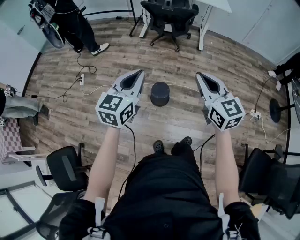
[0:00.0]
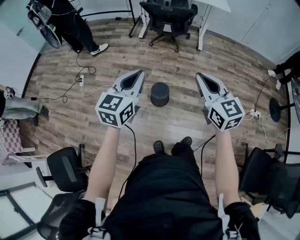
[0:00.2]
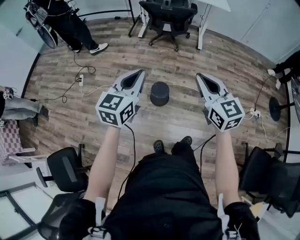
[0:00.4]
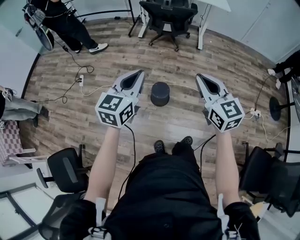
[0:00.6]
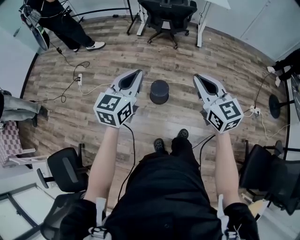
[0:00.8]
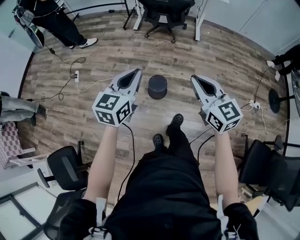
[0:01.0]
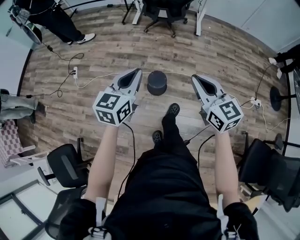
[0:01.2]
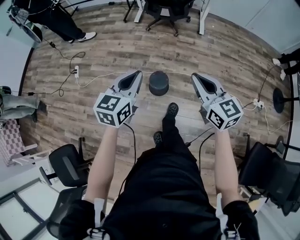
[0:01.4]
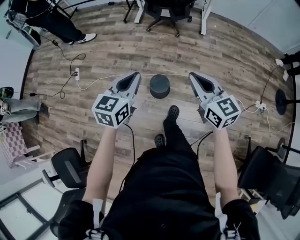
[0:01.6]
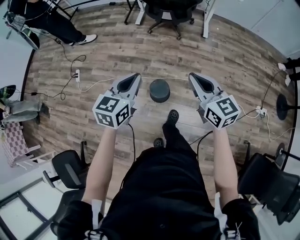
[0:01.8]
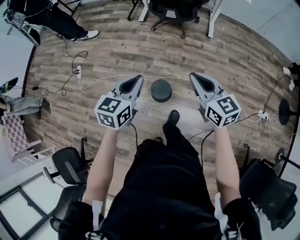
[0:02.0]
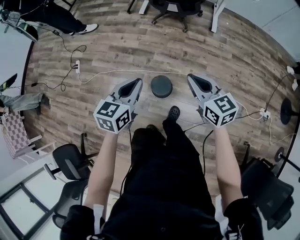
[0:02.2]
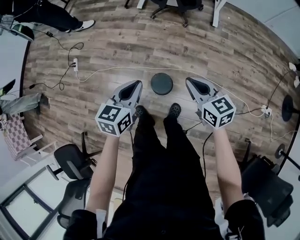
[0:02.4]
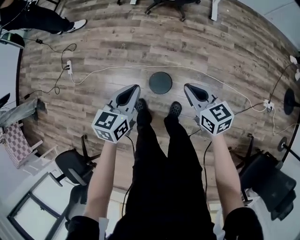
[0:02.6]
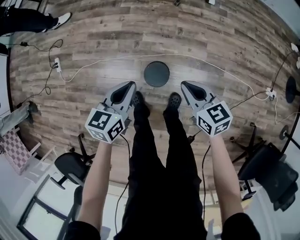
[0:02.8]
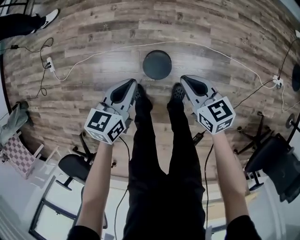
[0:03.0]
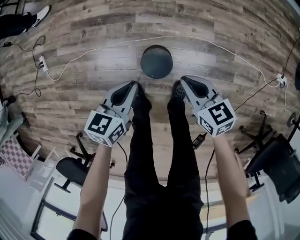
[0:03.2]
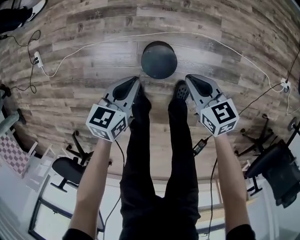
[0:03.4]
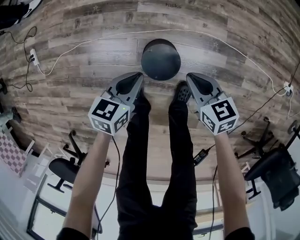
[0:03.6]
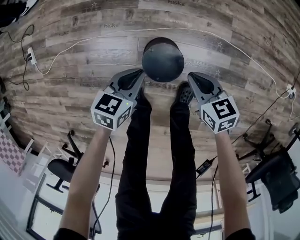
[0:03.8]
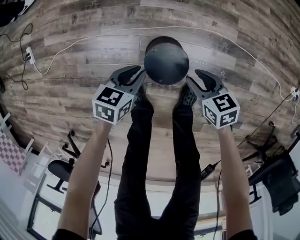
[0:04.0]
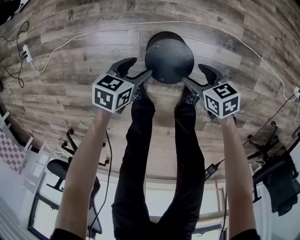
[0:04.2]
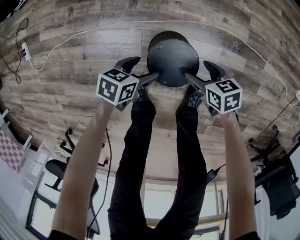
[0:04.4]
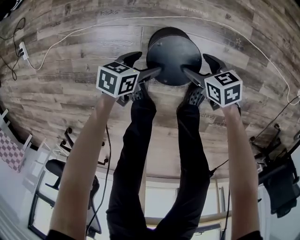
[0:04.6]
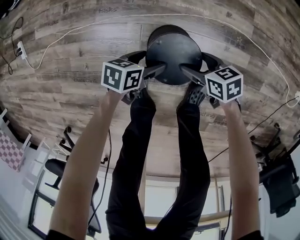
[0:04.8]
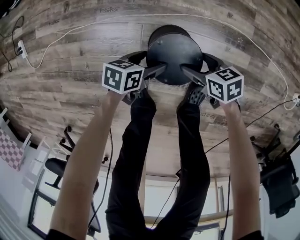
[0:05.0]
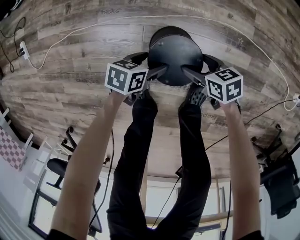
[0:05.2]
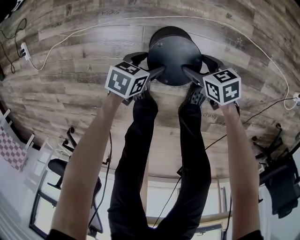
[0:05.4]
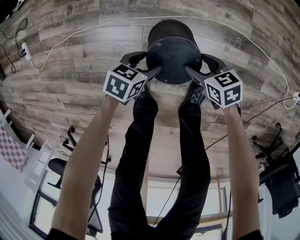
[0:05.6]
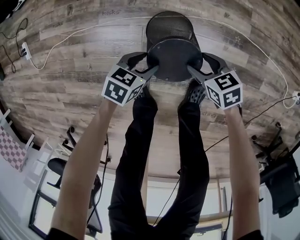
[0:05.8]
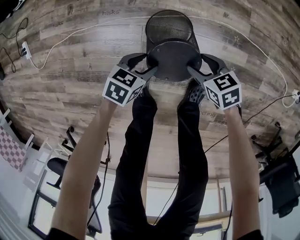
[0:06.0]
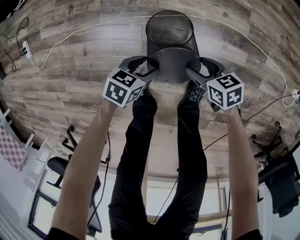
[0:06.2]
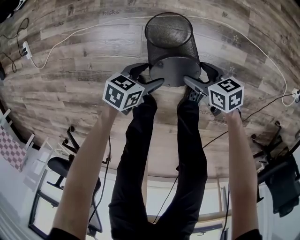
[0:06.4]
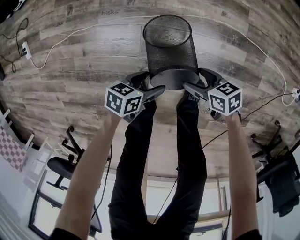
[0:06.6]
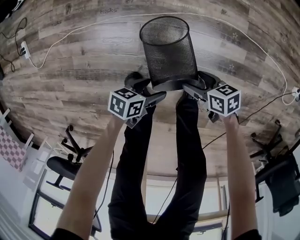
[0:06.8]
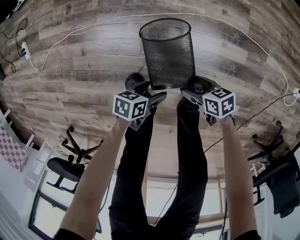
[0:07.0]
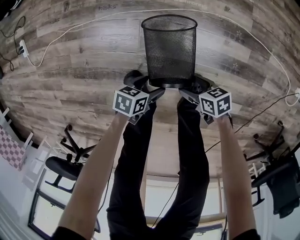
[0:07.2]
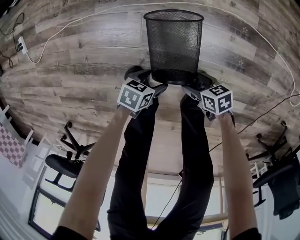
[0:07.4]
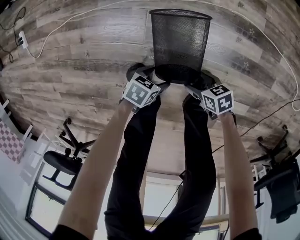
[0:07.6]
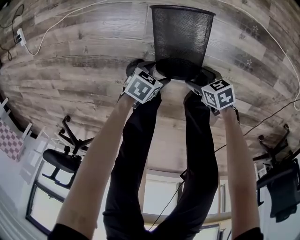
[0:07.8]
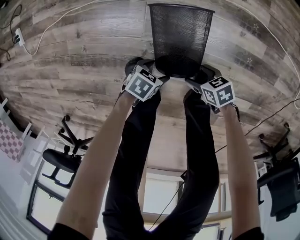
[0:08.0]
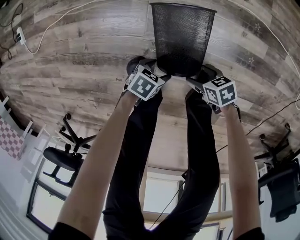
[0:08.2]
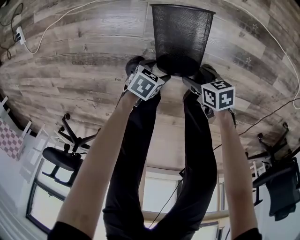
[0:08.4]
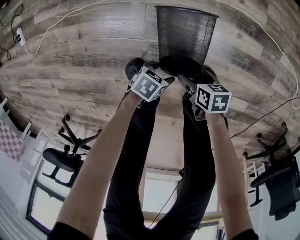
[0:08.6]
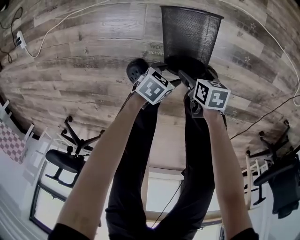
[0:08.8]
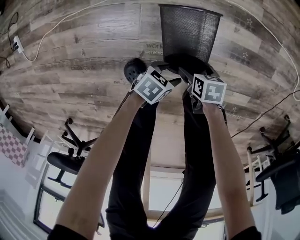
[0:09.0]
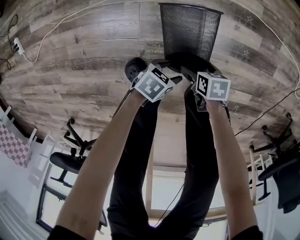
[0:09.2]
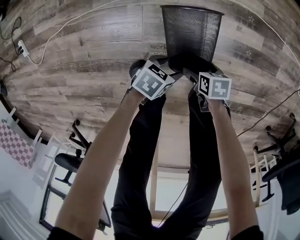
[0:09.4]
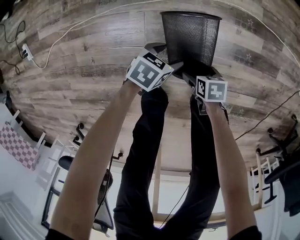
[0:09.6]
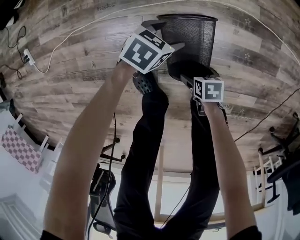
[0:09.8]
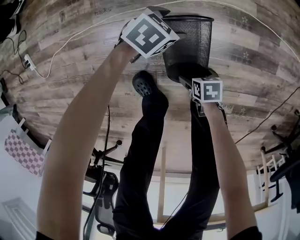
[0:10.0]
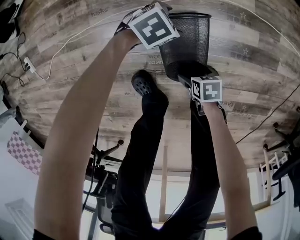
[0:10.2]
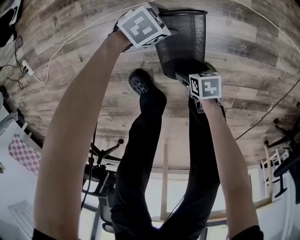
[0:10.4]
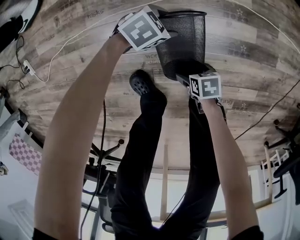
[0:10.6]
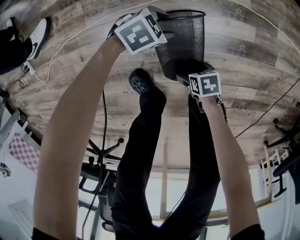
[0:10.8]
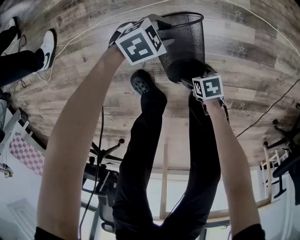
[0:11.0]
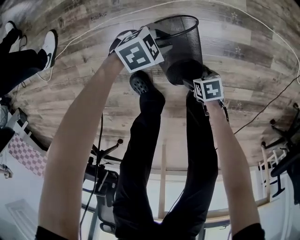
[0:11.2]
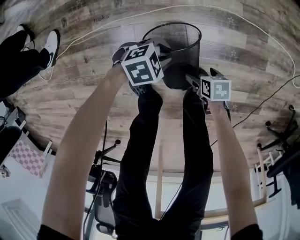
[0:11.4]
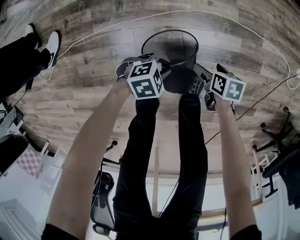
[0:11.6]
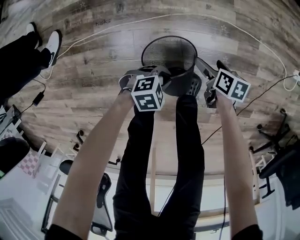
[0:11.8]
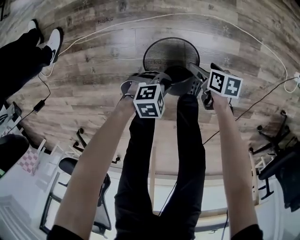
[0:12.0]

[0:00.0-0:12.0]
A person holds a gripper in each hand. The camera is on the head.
0:00.0 to 0:01.6: The grippers both shift forward and downward by about 15 cm.
0:01.6 to 0:03.0: The left gripper shifts approximately 30 cm downward and forward, and changes its angle by some 20 degrees, while the right gripper heads downward, covering about 30 cm, and changes its angle by some 30 degrees.
0:03.0 to 0:04.4: Both grippers travel together downward, some 40 cm. The left gripper changes its angle by about 30 degrees, and opens. Meanwhile the right gripper swivels some 30 degrees, and opens up.
0:04.4 to 0:06.0: The left gripper closes up.
0:06.0 to 0:07.6: The left gripper shifts by approximately 20 cm. Meanwhile the right gripper ends up about 20 cm from where it was, and swivels approximately 20 degrees.
0:07.6 to 0:09.0: The left gripper changes place by some 5 cm; the right gripper swivels roughly 30 degrees.
0:09.0 to 0:10.4: The left gripper moves some 25 cm, and changes its angle by about 40 degrees.
0:10.4 to 0:12.0: The left gripper shifts by roughly 20 cm, and closes; the right gripper shifts by about 15 cm.

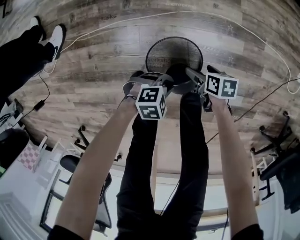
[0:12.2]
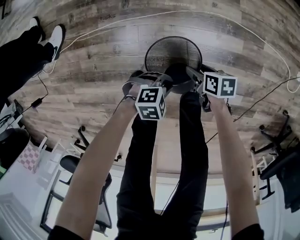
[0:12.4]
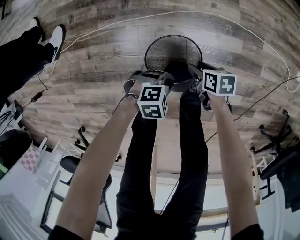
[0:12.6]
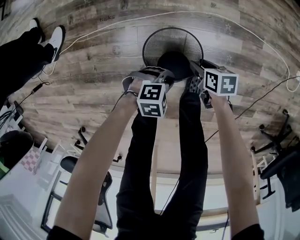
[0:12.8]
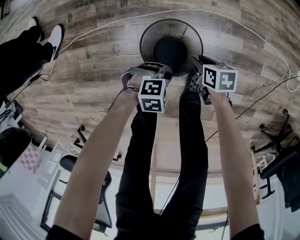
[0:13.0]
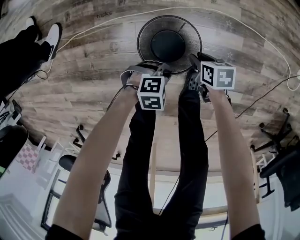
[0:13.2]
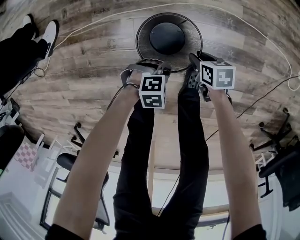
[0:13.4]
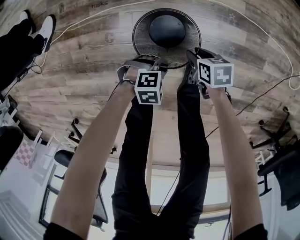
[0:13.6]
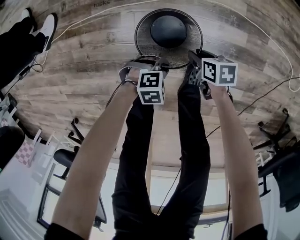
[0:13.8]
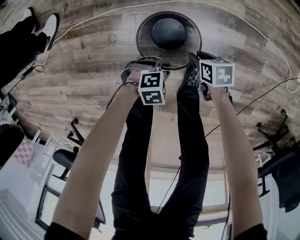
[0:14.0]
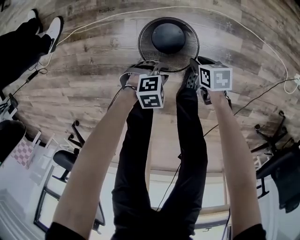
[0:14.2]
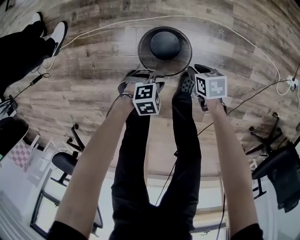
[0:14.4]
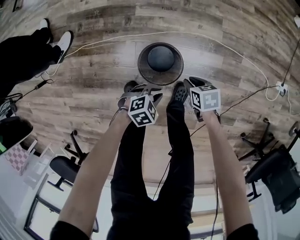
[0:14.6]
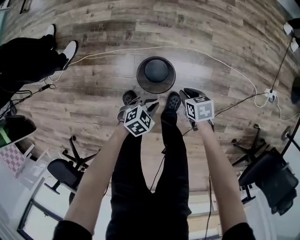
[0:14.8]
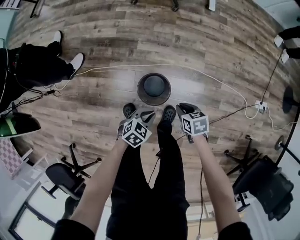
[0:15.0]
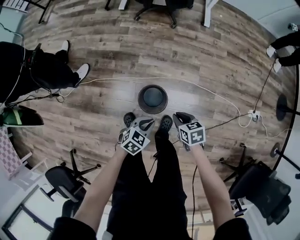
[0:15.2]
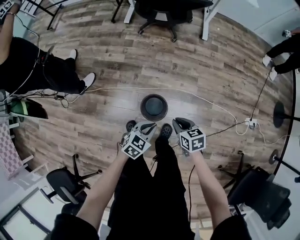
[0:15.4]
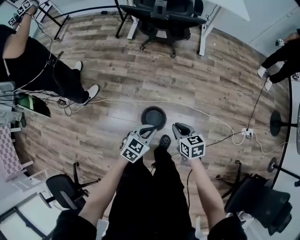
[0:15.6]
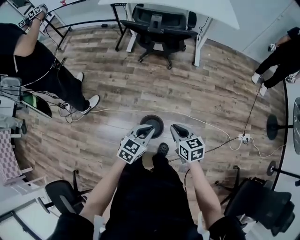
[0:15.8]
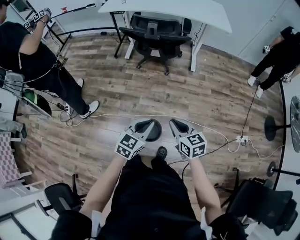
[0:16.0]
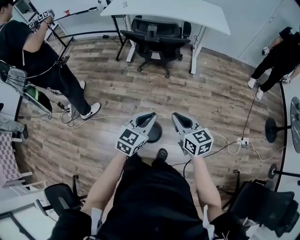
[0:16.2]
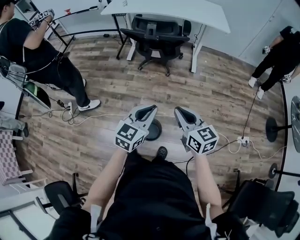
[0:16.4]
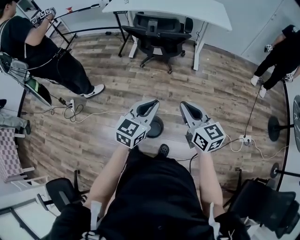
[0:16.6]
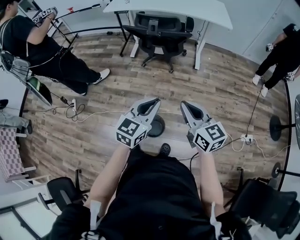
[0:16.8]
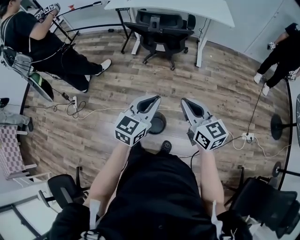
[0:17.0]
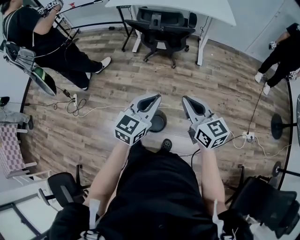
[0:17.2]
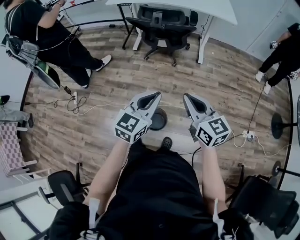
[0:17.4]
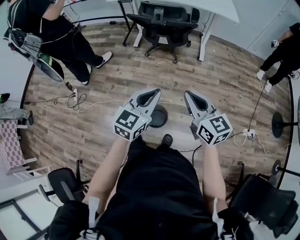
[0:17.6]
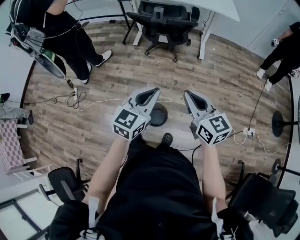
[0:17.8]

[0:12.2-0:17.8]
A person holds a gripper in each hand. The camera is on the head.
0:12.2 to 0:13.6: The left gripper is displaced downward by roughly 5 cm. Meanwhile the right gripper closes up.
0:13.6 to 0:15.0: Both grippers move upward, some 30 cm. The left gripper changes its angle by about 50 degrees.
0:15.0 to 0:16.4: Both grippers travel together upward, roughly 40 cm. The right gripper tilts its fingers roughly 40 degrees upward. The left gripper angles its fingers upward, by about 40 degrees.
0:16.4 to 0:17.8: The grippers move only a little.

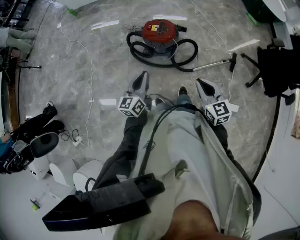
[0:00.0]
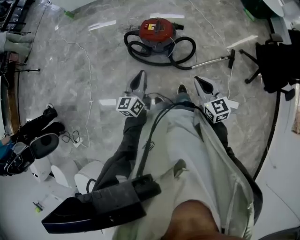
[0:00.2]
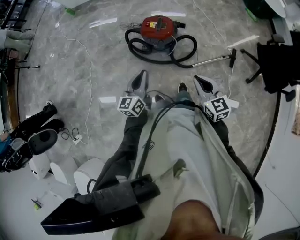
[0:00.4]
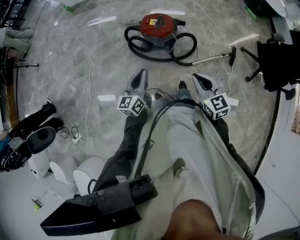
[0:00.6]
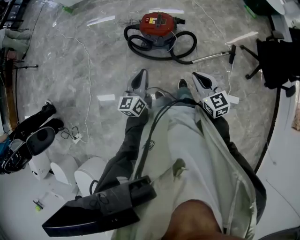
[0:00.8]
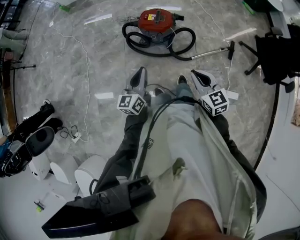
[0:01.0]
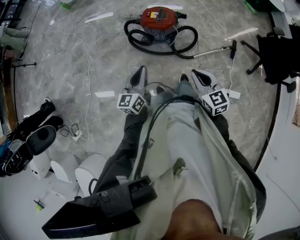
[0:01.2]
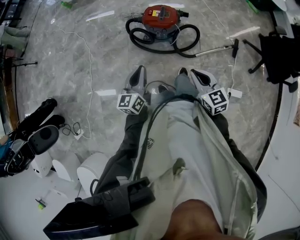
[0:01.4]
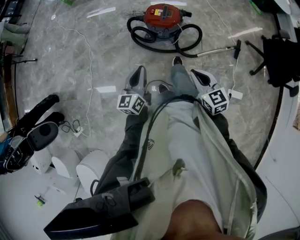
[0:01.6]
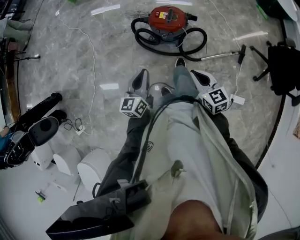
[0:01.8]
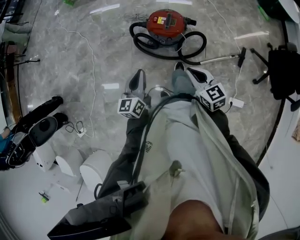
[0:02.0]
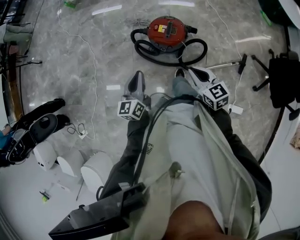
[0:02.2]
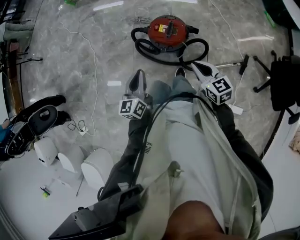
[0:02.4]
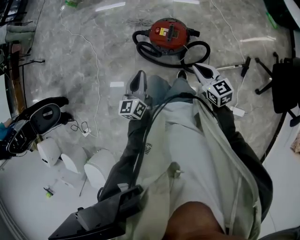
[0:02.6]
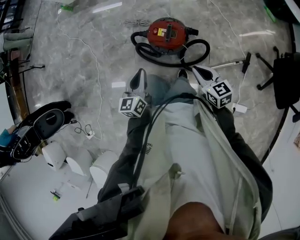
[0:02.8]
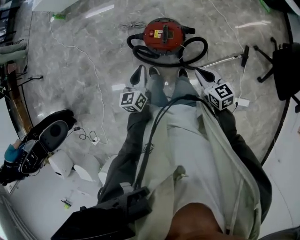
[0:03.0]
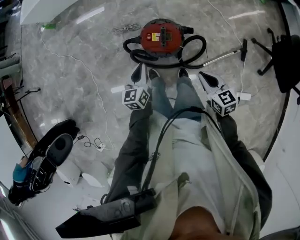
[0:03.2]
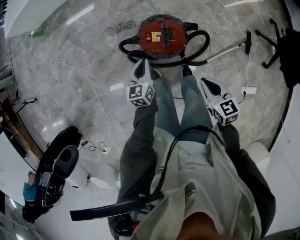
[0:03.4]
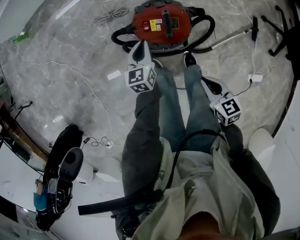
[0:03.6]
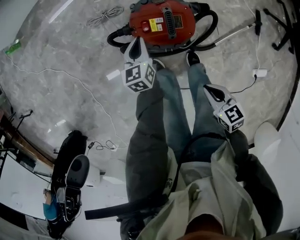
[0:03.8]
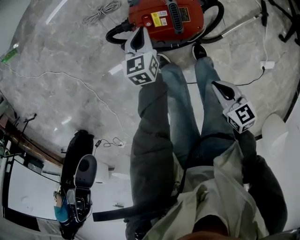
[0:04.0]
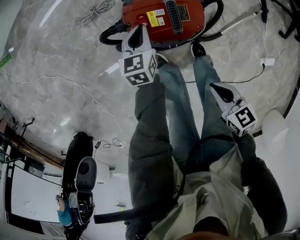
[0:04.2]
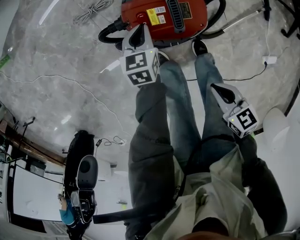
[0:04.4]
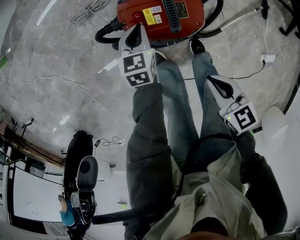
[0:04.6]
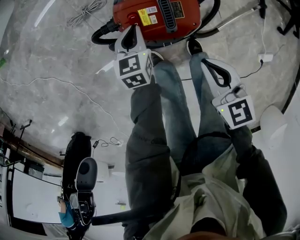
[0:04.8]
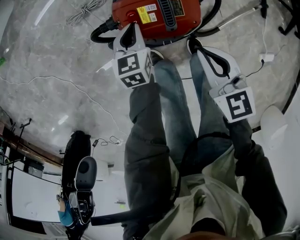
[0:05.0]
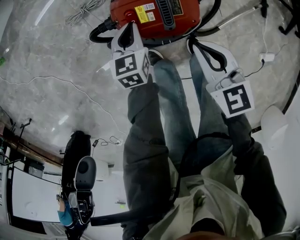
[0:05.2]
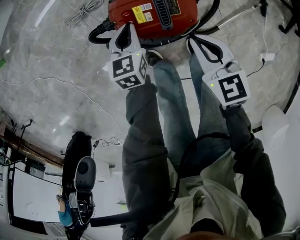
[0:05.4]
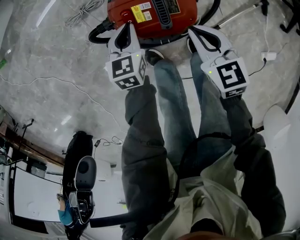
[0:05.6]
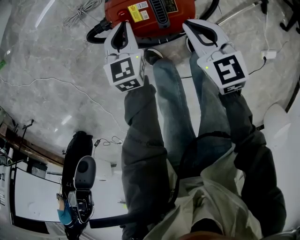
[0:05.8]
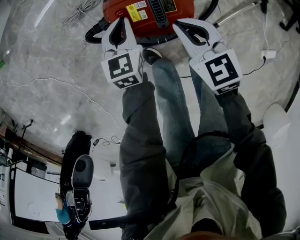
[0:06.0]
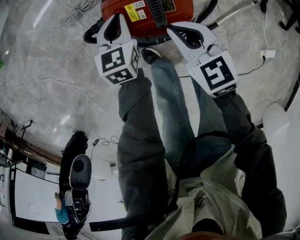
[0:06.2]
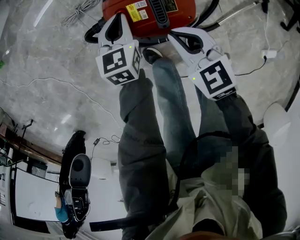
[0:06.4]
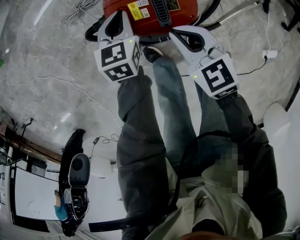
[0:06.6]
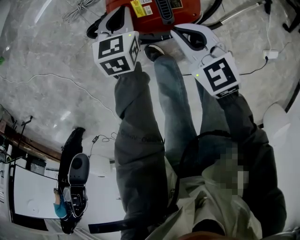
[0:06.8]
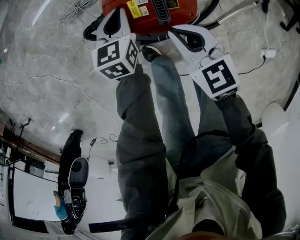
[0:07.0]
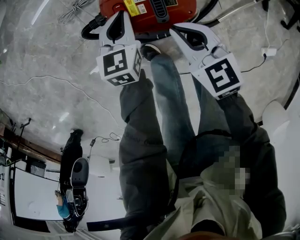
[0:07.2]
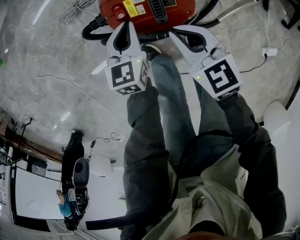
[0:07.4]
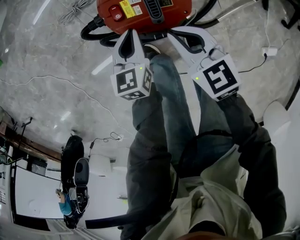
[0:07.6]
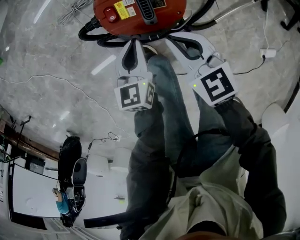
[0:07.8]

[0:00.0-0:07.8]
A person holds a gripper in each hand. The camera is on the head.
0:00.0 to 0:01.6: Both grippers move to the left, some 5 cm.
0:01.6 to 0:03.2: The right gripper shifts roughly 30 cm forward, to the right and downward; the left gripper moves forward and downward, some 35 cm.
0:03.2 to 0:04.6: The right gripper shifts about 25 cm downward and to the left. Meanwhile the left gripper shifts some 30 cm downward, and rotates approximately 30 degrees.
0:04.6 to 0:06.2: The right gripper moves forward, about 15 cm.
0:06.2 to 0:07.8: The left gripper shifts approximately 10 cm backward.
